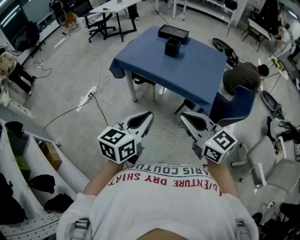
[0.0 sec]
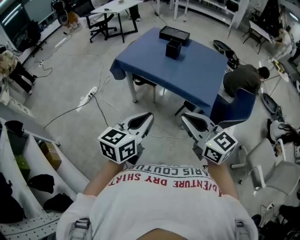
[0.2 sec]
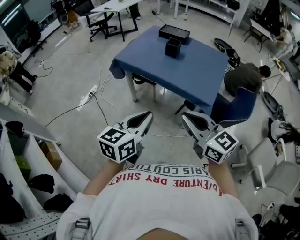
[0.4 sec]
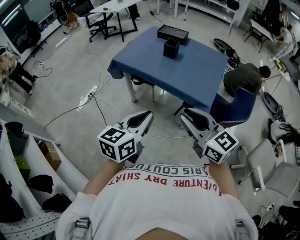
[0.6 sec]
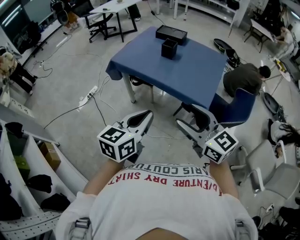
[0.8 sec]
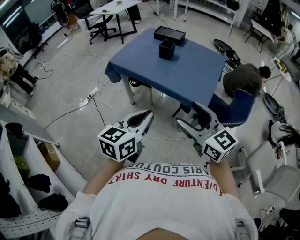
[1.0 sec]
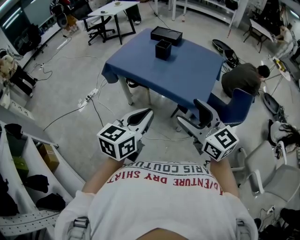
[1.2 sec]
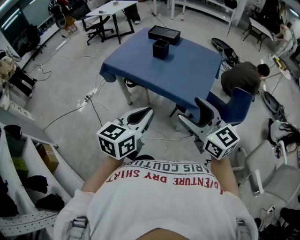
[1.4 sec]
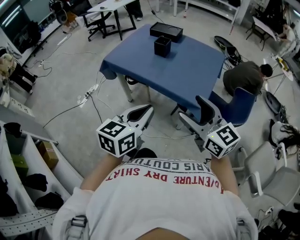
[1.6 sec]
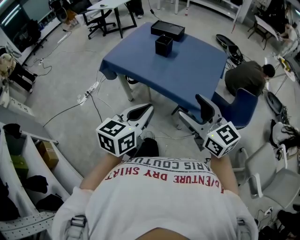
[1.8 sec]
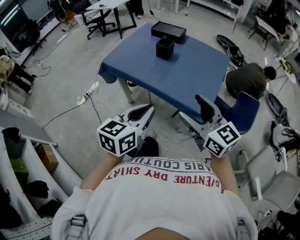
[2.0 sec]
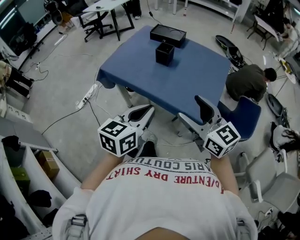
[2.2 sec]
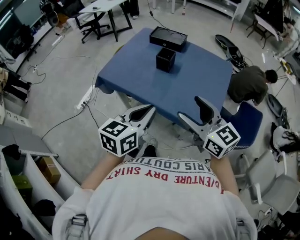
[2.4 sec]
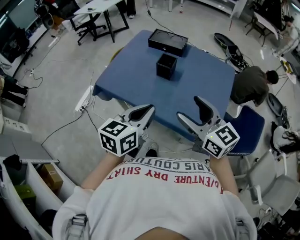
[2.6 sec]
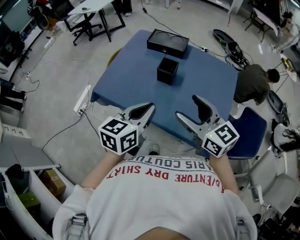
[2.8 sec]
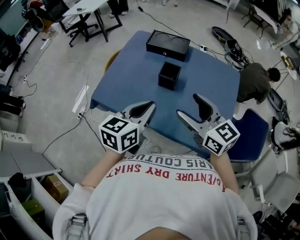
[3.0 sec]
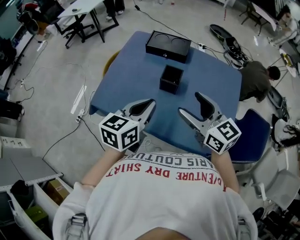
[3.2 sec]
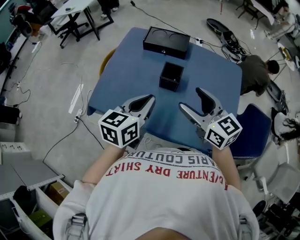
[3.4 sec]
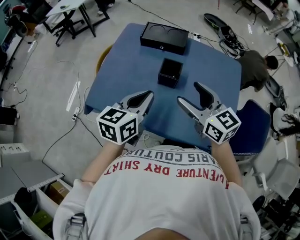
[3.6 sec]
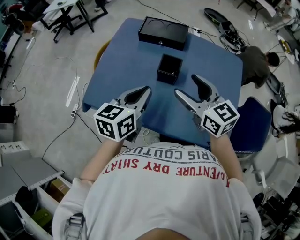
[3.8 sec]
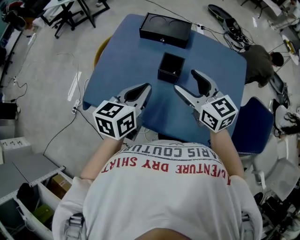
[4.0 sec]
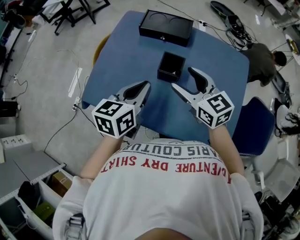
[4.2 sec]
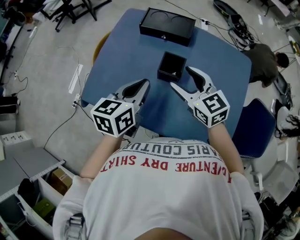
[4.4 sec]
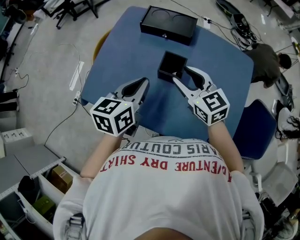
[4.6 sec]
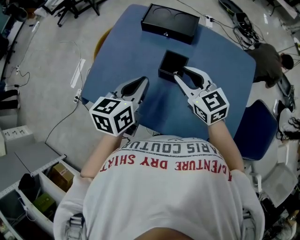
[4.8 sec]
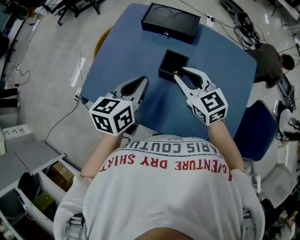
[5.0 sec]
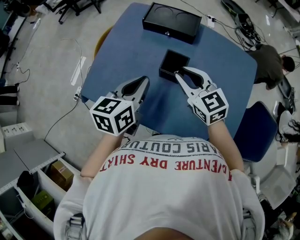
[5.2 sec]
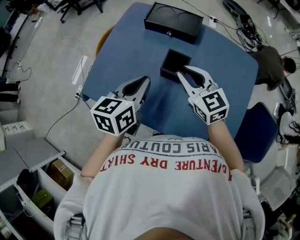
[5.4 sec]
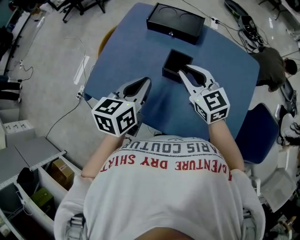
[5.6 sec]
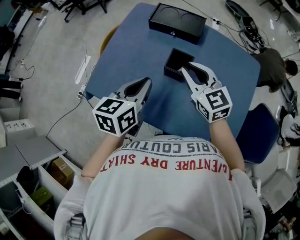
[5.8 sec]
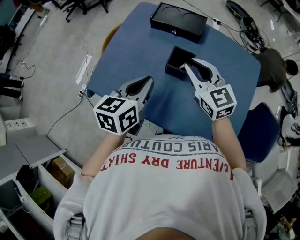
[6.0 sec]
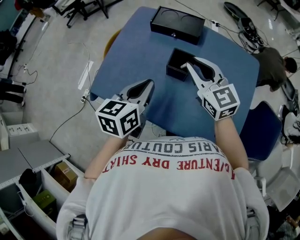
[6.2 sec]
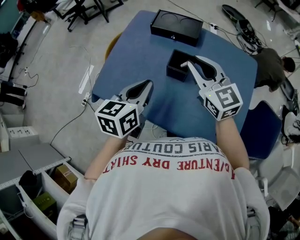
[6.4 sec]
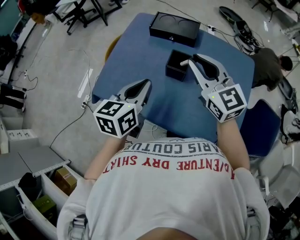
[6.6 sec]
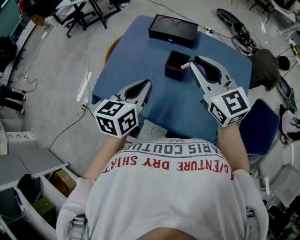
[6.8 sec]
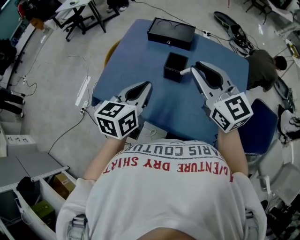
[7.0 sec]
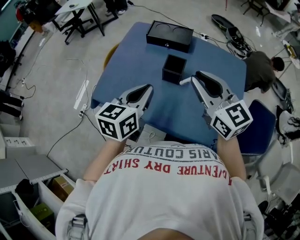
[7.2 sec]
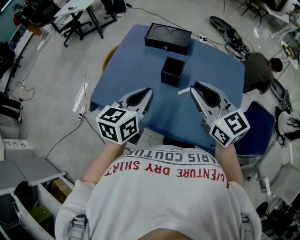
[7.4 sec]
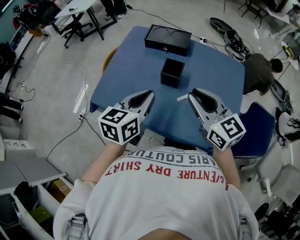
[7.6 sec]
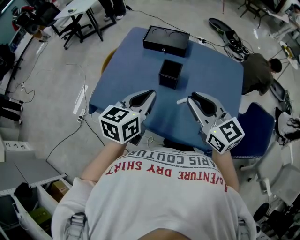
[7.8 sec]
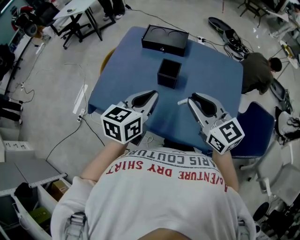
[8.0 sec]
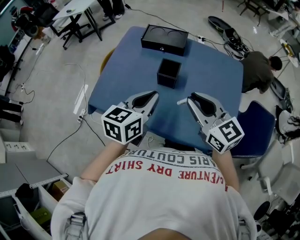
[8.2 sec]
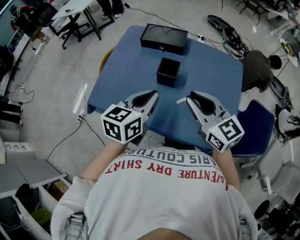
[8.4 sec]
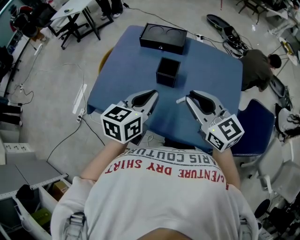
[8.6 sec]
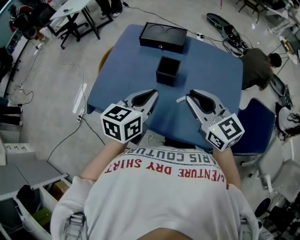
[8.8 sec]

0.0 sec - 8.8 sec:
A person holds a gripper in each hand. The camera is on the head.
0.0 sec - 1.4 sec: The left gripper goes approximately 10 cm to the right. The right gripper moves to the right and forward, approximately 15 cm, and opens up.
1.4 sec - 3.0 sec: Both grippers travel together forward, roughly 35 cm.
3.0 sec - 4.4 sec: Both grippers move forward and downward, roughly 15 cm.
4.4 sec - 5.8 sec: The right gripper closes.
5.8 sec - 7.4 sec: The right gripper is displaced backward and upward by about 15 cm. The left gripper moves backward, approximately 5 cm.
7.4 sec - 8.8 sec: There are only small adjustments of the grippers.

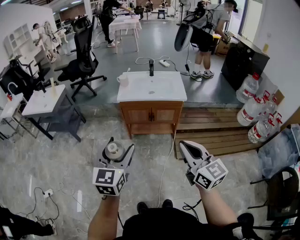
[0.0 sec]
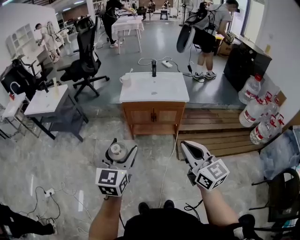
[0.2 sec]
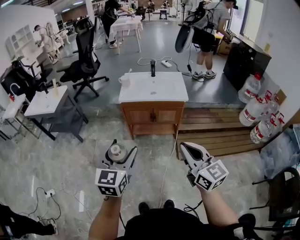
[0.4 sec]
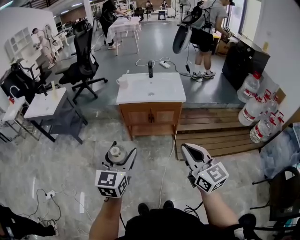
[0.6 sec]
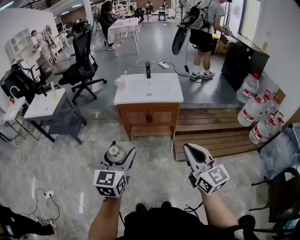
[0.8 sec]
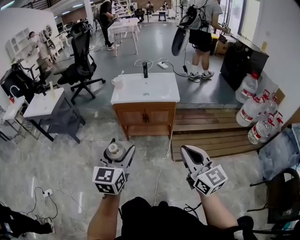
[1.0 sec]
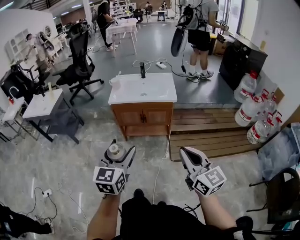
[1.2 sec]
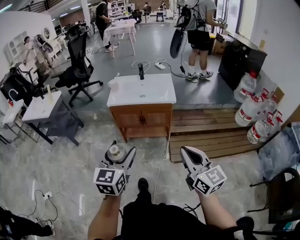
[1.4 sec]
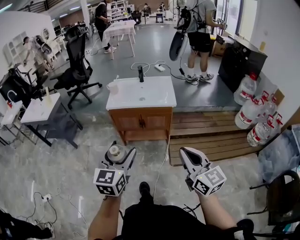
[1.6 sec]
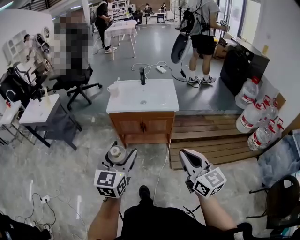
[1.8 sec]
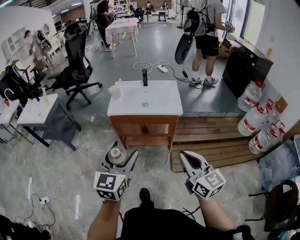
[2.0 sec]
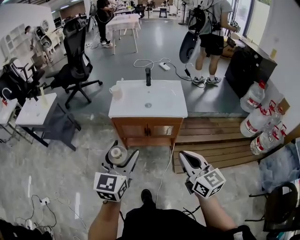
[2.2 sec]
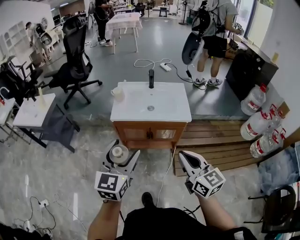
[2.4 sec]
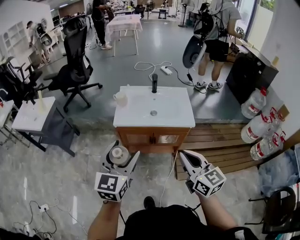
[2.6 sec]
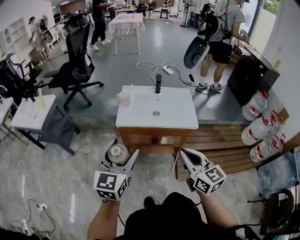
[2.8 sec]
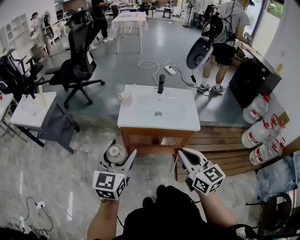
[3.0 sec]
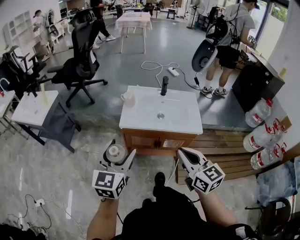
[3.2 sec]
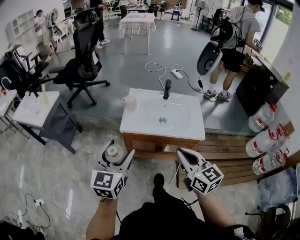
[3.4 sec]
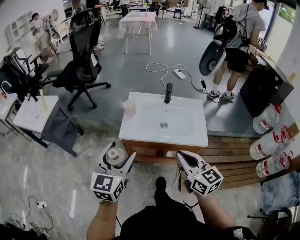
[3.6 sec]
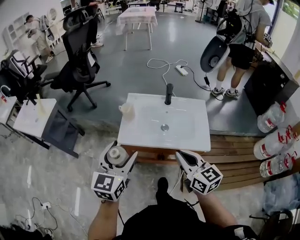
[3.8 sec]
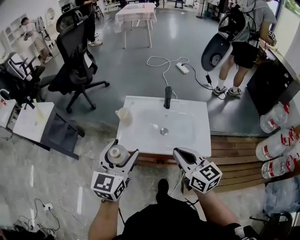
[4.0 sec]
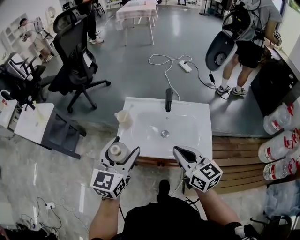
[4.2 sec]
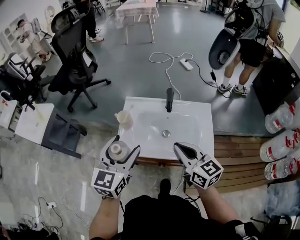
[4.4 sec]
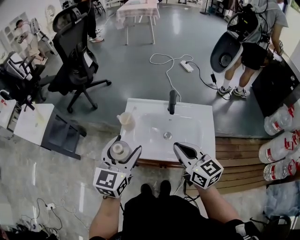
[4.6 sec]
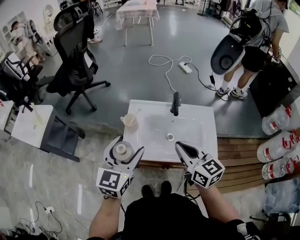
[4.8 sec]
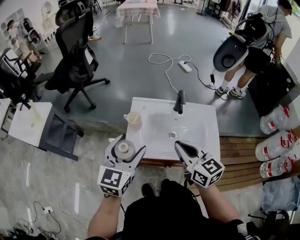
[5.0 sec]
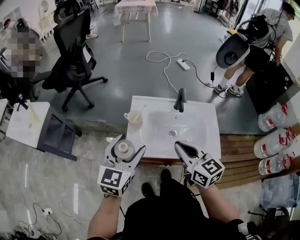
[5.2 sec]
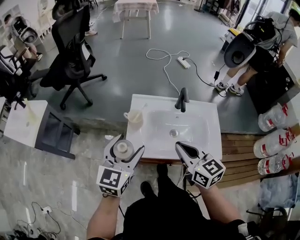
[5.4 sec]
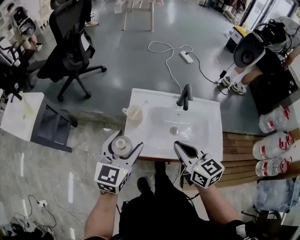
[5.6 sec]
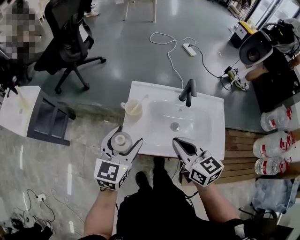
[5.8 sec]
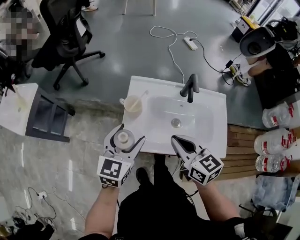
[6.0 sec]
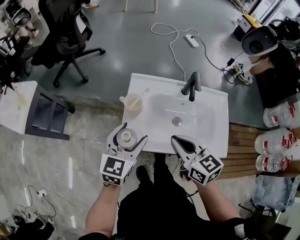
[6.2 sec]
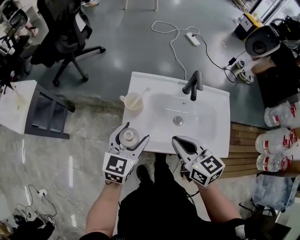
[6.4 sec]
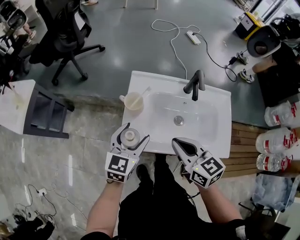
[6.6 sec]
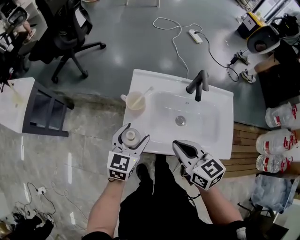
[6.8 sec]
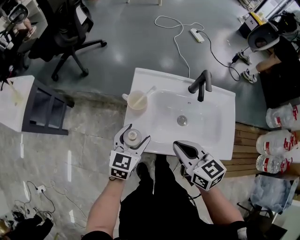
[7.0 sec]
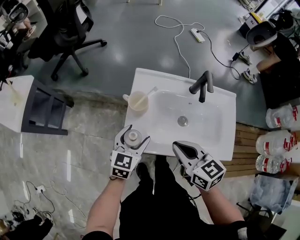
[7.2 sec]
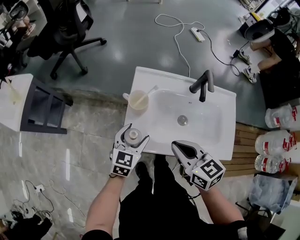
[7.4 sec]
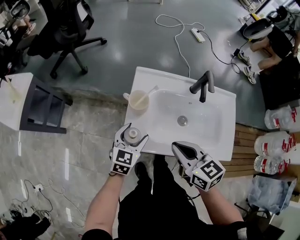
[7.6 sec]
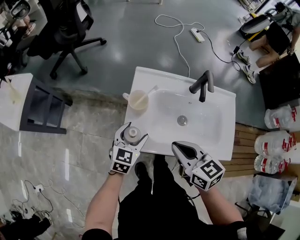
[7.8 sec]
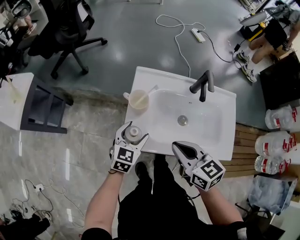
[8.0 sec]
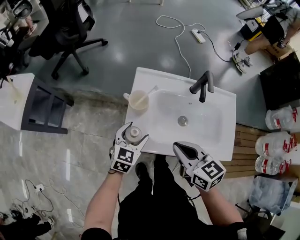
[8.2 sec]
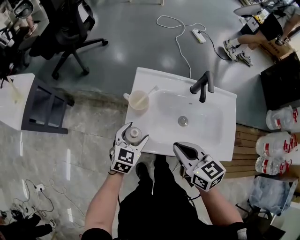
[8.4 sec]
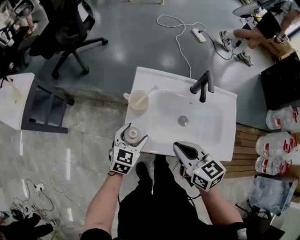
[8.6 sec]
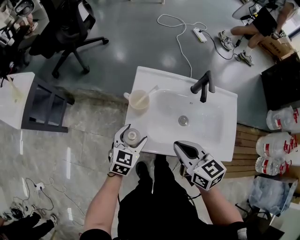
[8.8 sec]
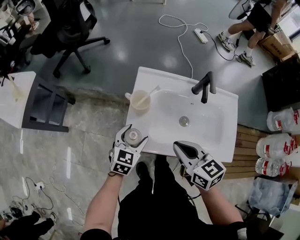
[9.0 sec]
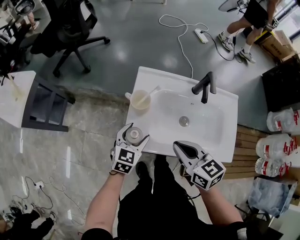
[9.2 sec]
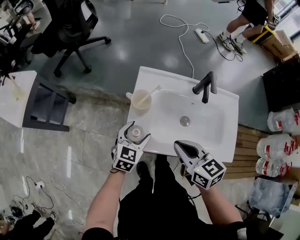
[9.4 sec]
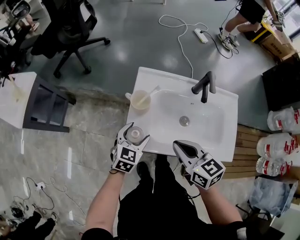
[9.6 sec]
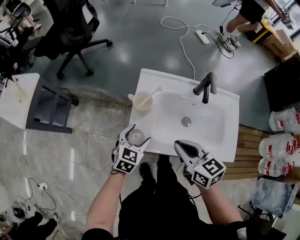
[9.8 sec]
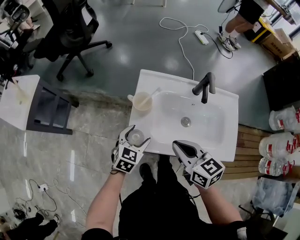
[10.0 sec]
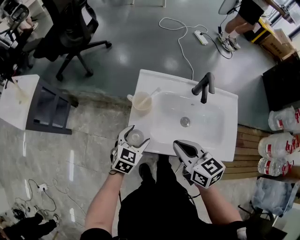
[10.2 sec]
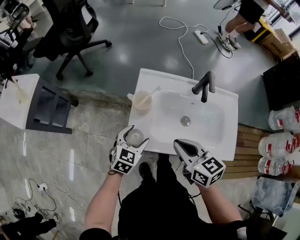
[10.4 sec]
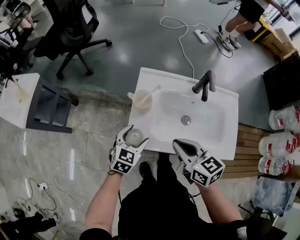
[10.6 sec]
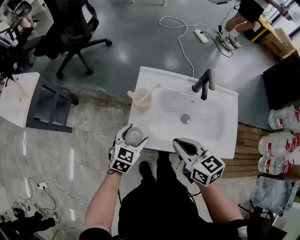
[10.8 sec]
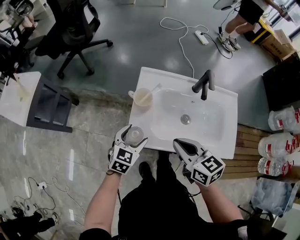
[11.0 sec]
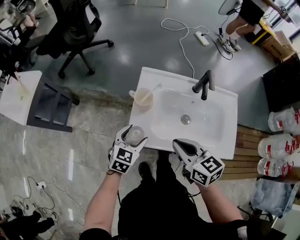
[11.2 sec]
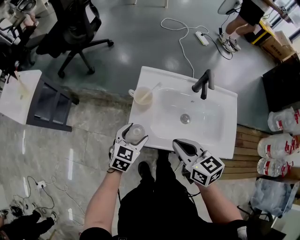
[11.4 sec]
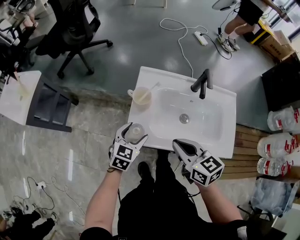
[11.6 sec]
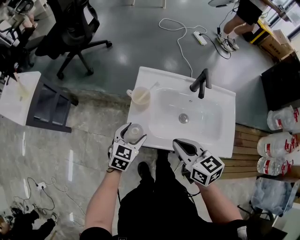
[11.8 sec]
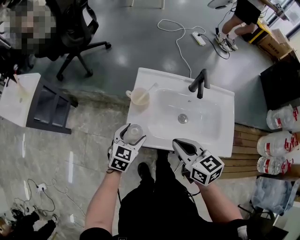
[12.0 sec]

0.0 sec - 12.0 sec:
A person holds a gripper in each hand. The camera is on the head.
0.0 sec - 1.6 sec: Both grippers travel together to the right, roughly 10 cm.
1.6 sec - 3.0 sec: Both grippers travel together forward and to the left, some 30 cm.
3.0 sec - 4.4 sec: The two grippers go some 30 cm forward.
4.4 sec - 6.0 sec: The left gripper travels downward, forward and to the left by some 15 cm, while the right gripper moves to the left, downward and forward, approximately 15 cm.
6.0 sec - 7.6 sec: The left gripper heads downward, covering roughly 15 cm, while the right gripper goes some 5 cm downward.
7.6 sec - 12.0 sec: There are only small adjustments of the grippers.

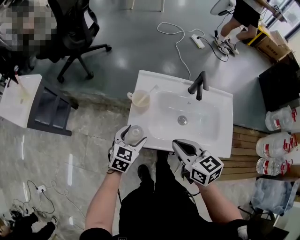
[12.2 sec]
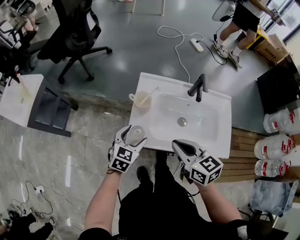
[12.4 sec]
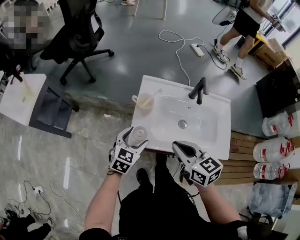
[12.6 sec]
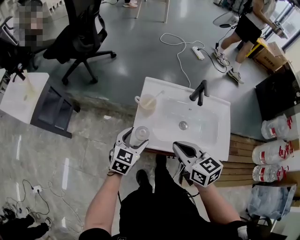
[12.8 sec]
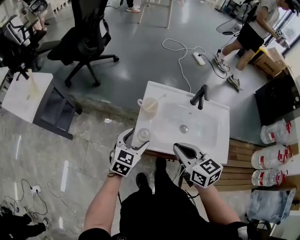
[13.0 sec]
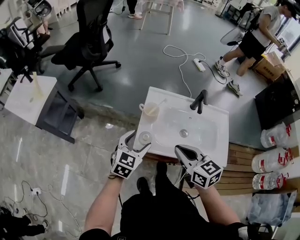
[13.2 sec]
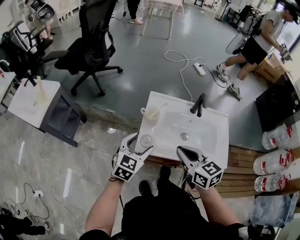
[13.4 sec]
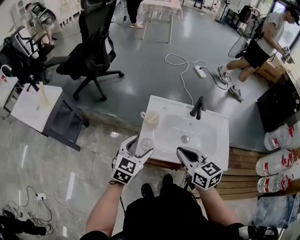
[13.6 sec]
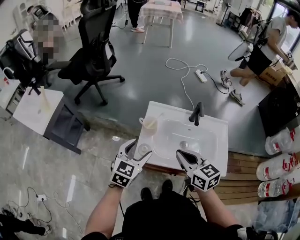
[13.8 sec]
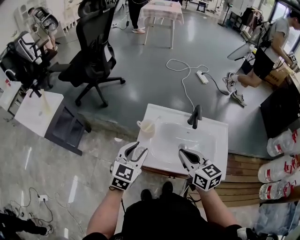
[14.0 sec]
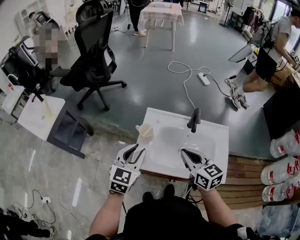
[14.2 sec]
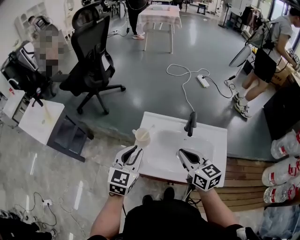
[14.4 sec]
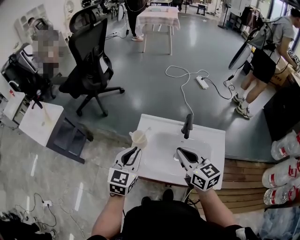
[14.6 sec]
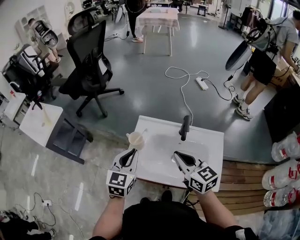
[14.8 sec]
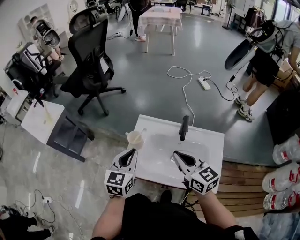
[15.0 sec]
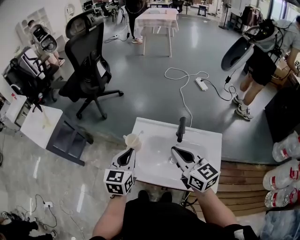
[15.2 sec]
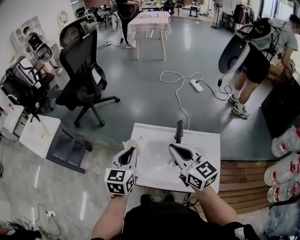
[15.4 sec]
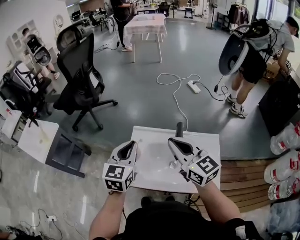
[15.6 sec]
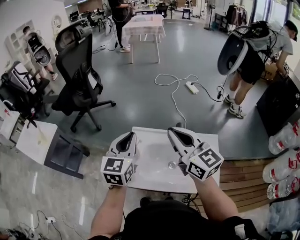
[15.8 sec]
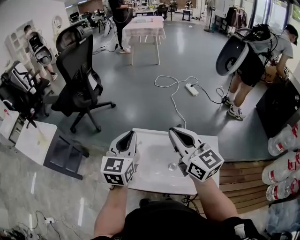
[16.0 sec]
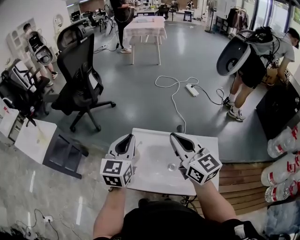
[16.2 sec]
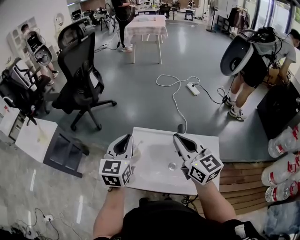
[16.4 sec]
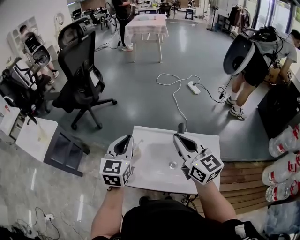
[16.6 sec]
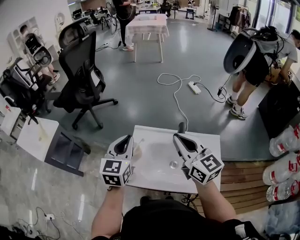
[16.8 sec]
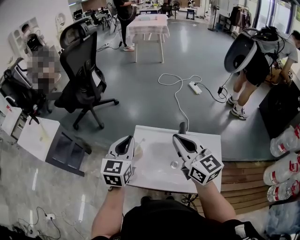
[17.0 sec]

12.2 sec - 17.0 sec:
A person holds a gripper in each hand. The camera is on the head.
12.2 sec - 13.8 sec: The left gripper moves upward, about 15 cm; the right gripper moves upward, approximately 10 cm.
13.8 sec - 15.4 sec: Both grippers travel together to the right, forward and upward, roughly 15 cm. The left gripper closes its fingers.
15.4 sec - 17.0 sec: The left gripper moves upward, some 5 cm.
